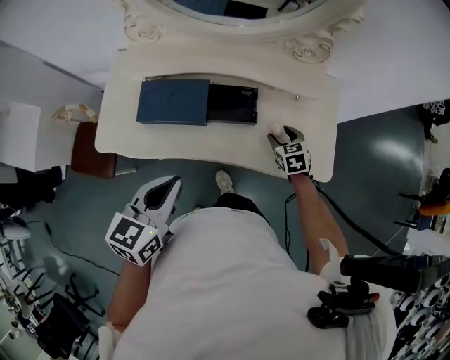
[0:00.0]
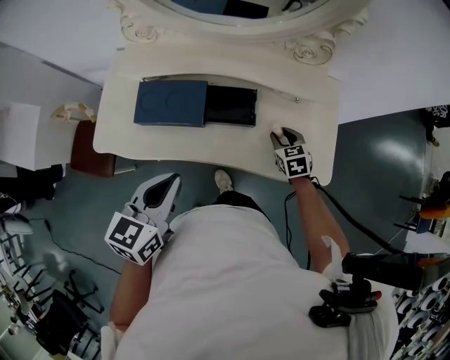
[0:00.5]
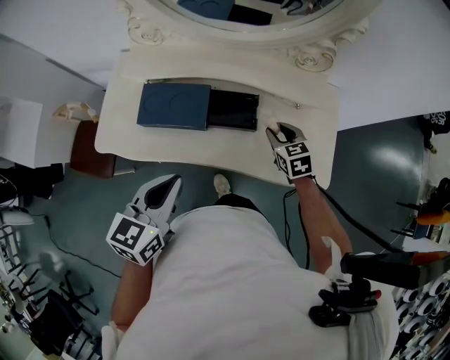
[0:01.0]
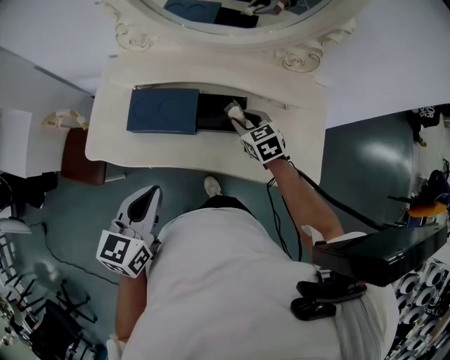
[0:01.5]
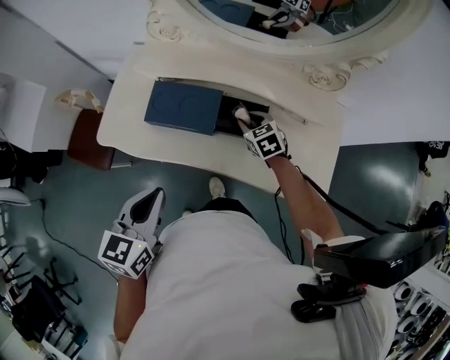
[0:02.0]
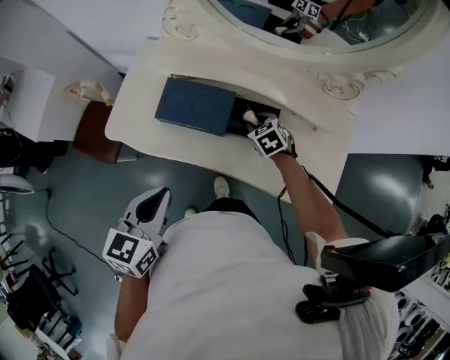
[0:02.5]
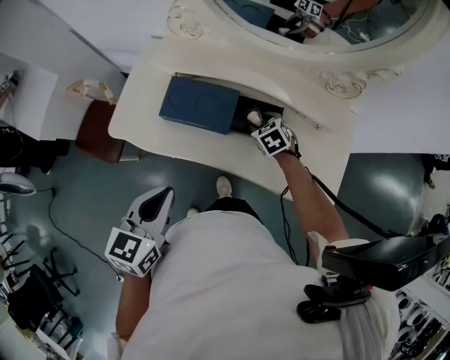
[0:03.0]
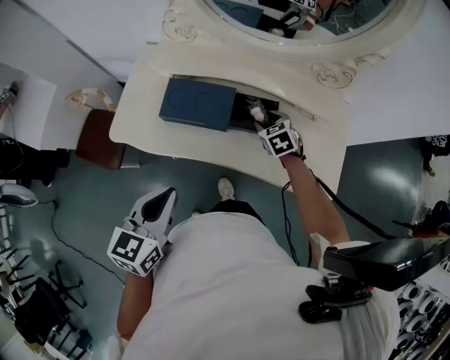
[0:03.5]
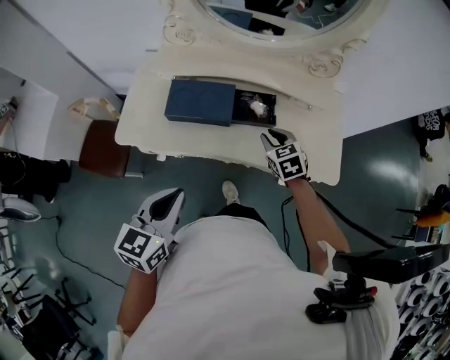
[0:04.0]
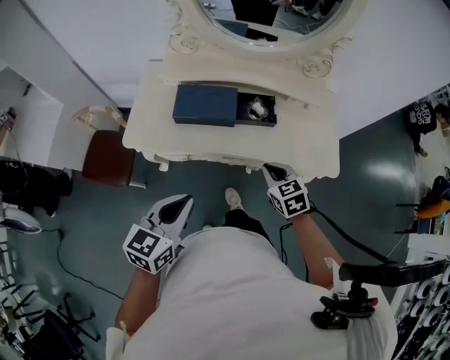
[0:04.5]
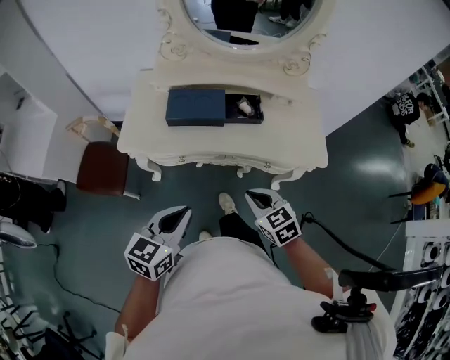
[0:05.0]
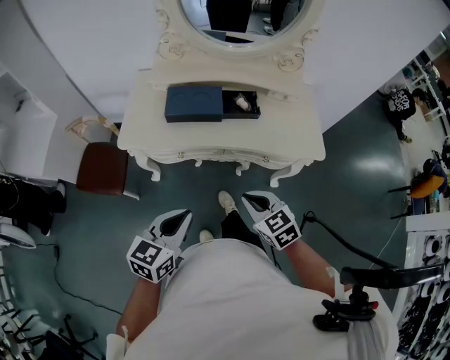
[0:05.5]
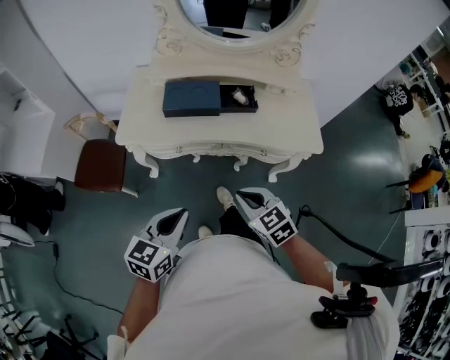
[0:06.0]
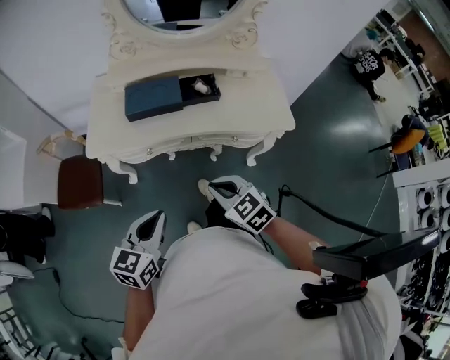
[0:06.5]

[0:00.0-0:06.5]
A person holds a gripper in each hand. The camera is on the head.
0:00.0 to 0:02.0: The right gripper goes roughly 20 cm to the left and forward, swivels about 20 degrees, and closes. Meanwhile the left gripper shifts approximately 5 cm to the left.
0:02.0 to 0:04.5: The right gripper is displaced backward by roughly 25 cm, and closes up. Meanwhile the left gripper shifts roughly 15 cm backward and to the left.
0:04.5 to 0:06.5: The left gripper shifts about 10 cm backward, while the right gripper travels backward and to the left by about 20 cm.

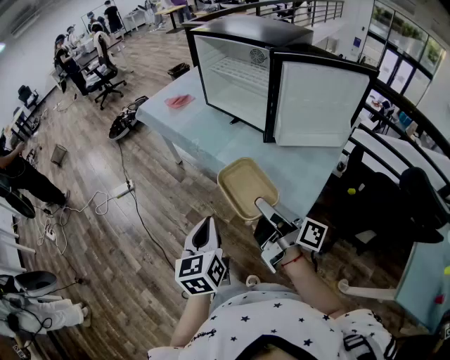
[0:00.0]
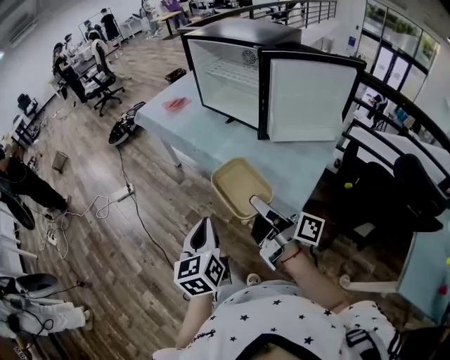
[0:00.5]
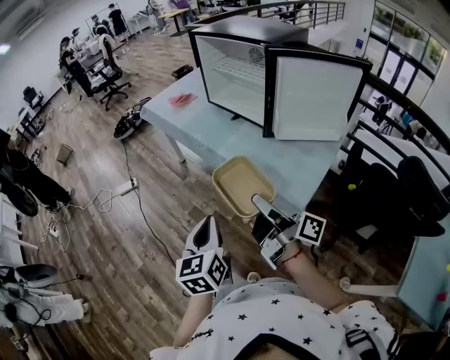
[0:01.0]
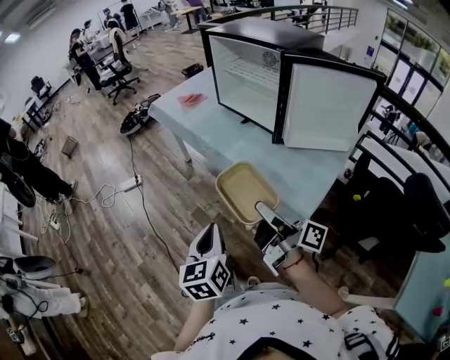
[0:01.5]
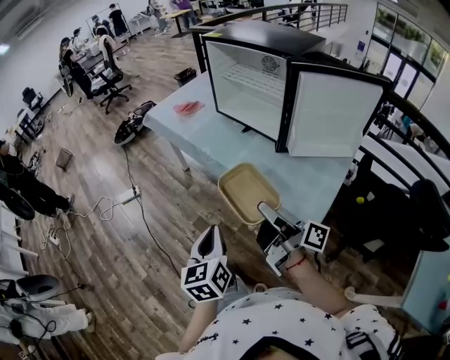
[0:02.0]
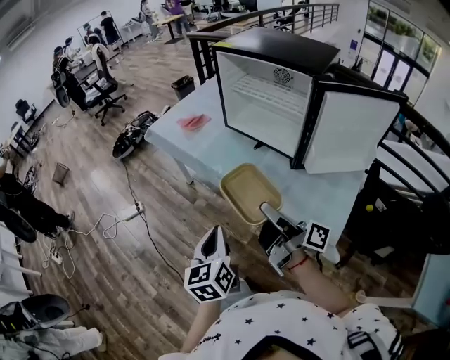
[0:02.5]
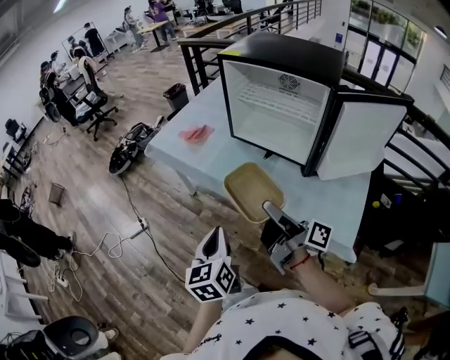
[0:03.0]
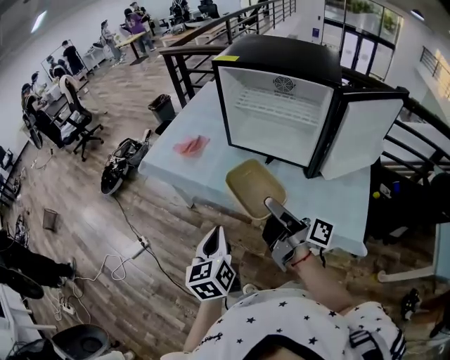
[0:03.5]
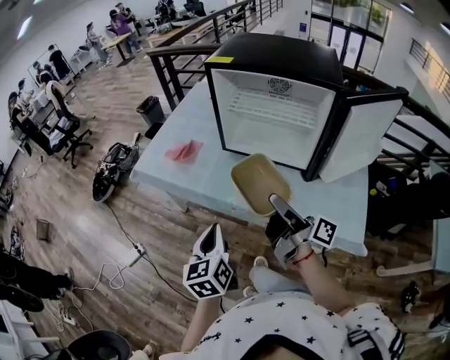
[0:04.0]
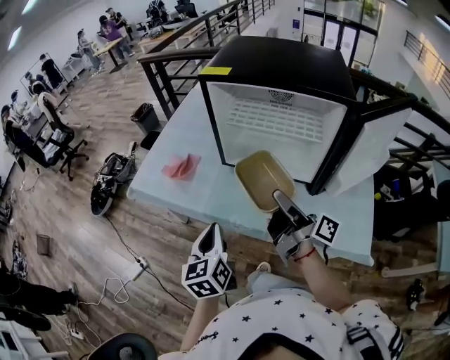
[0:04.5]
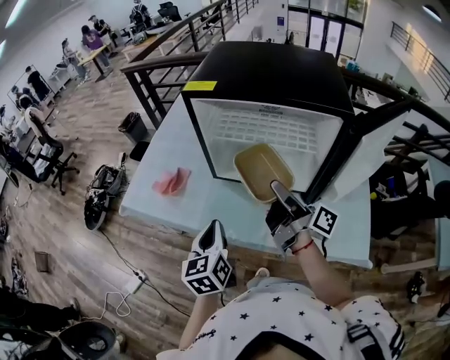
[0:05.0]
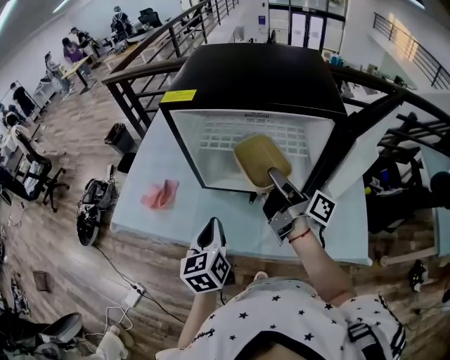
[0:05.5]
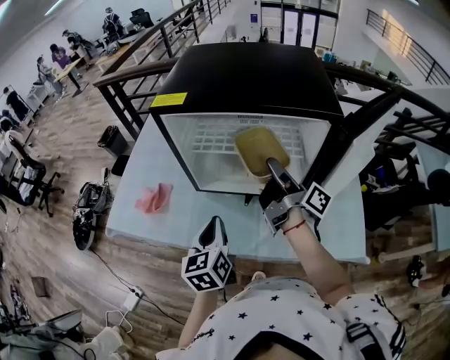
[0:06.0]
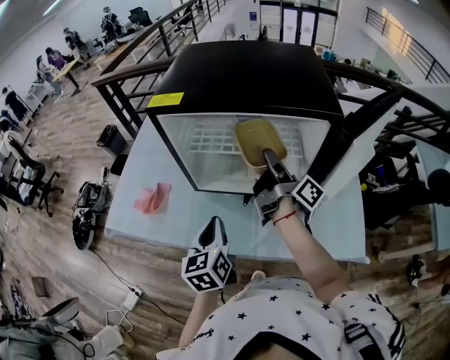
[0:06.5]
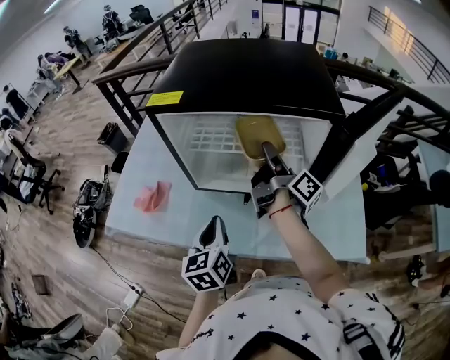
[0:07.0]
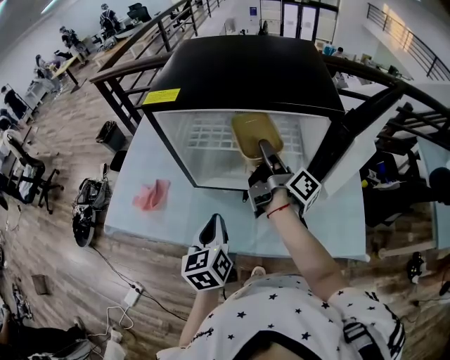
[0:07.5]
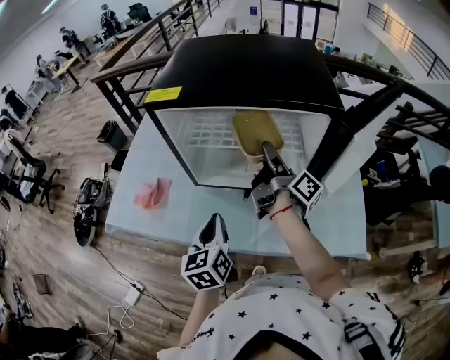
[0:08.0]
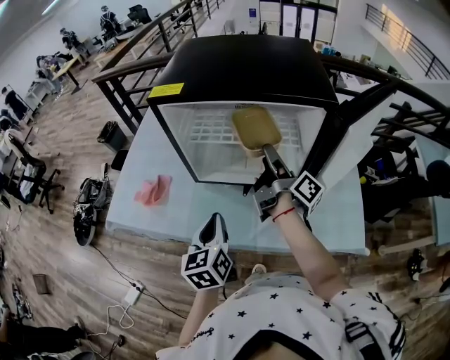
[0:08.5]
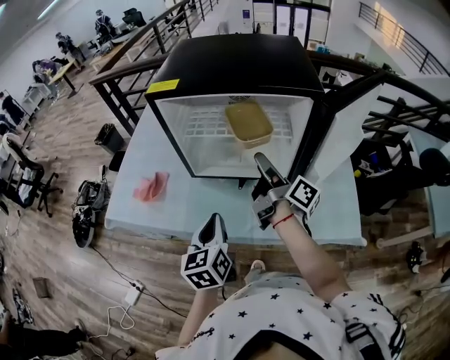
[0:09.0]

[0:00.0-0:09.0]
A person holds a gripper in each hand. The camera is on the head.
0:00.0 to 0:02.0: There are only small adjustments of the grippers.
0:02.0 to 0:04.5: Both grippers move forward, approximately 35 cm. The left gripper changes its angle by about 20 degrees. Meanwhile the right gripper rotates some 30 degrees.
0:04.5 to 0:07.0: The grippers both shift forward and to the right by roughly 20 cm. The right gripper rotates roughly 30 degrees.
0:07.0 to 0:09.0: The right gripper is displaced backward by roughly 10 cm. The left gripper heads backward, covering roughly 5 cm.

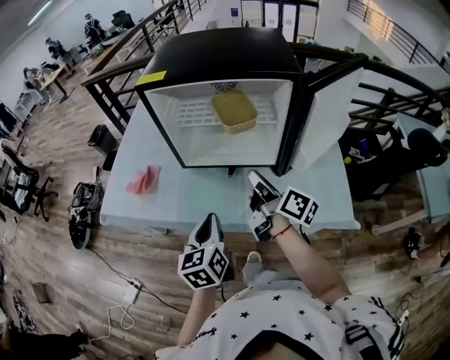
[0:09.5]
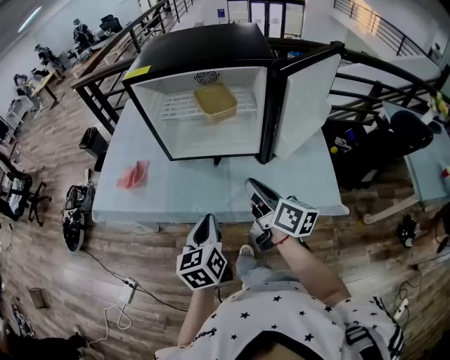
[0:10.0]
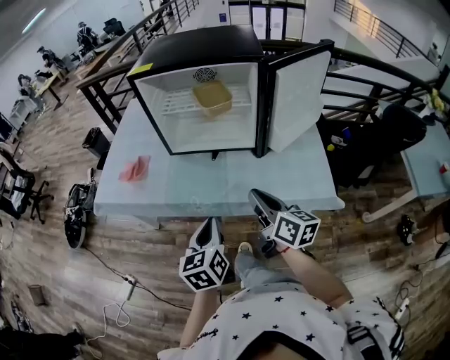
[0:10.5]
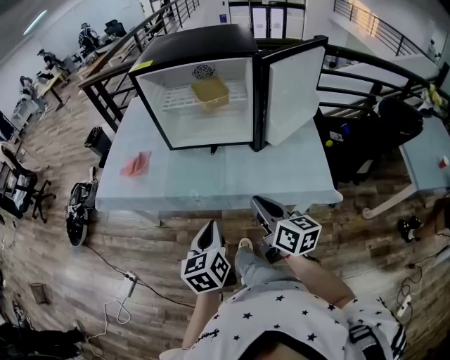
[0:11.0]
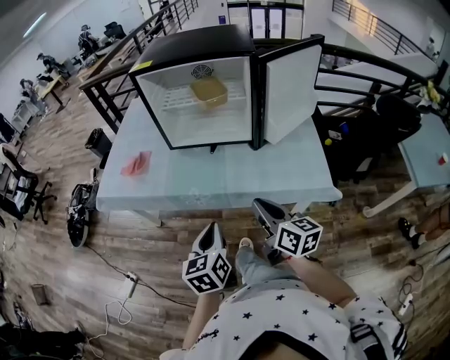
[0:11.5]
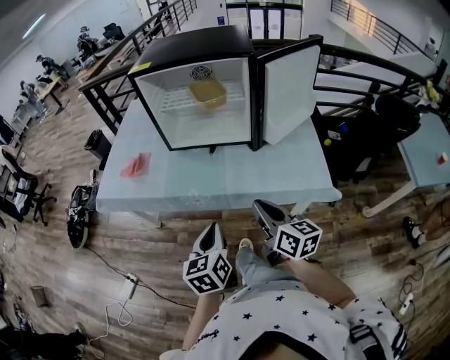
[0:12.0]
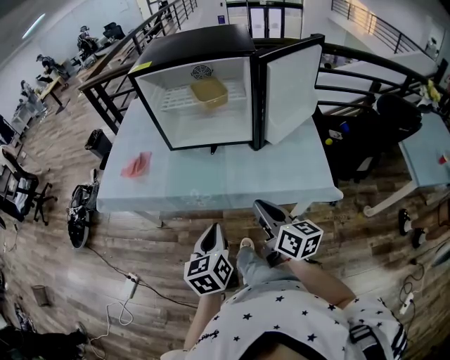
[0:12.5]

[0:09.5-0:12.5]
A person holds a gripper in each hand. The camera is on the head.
0:09.5 to 0:11.0: The two grippers go approximately 20 cm backward. The right gripper rotates approximately 30 degrees.
0:11.0 to 0:12.5: The grippers make only small movements.

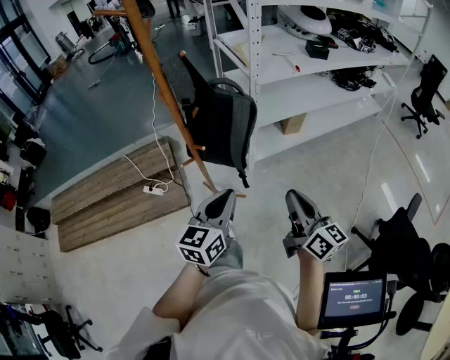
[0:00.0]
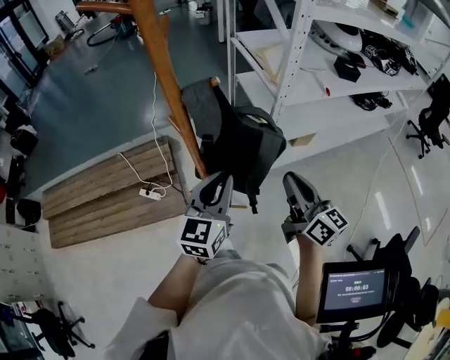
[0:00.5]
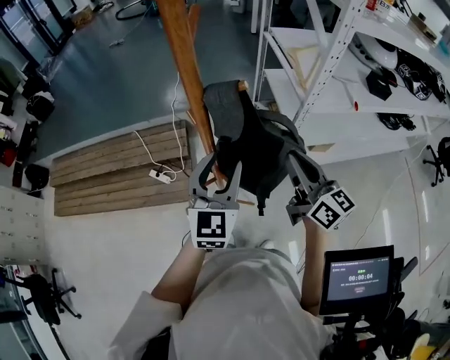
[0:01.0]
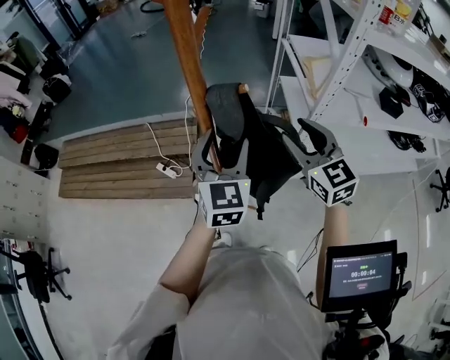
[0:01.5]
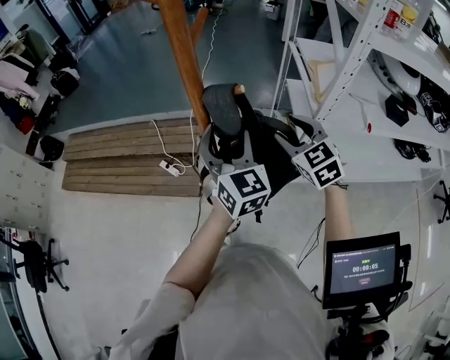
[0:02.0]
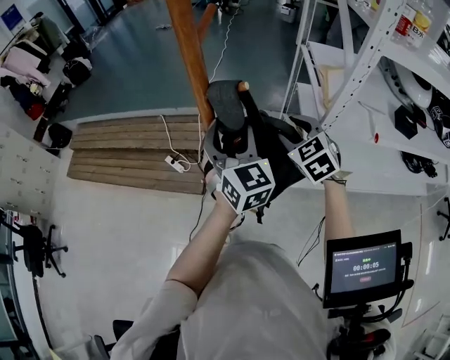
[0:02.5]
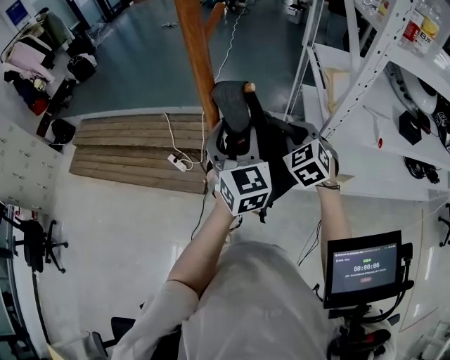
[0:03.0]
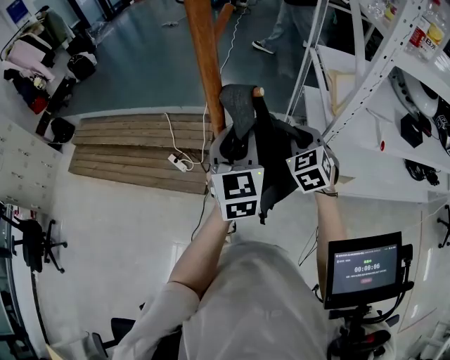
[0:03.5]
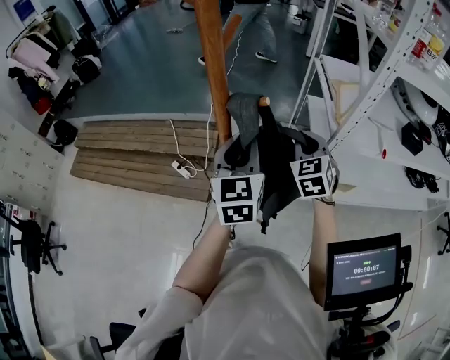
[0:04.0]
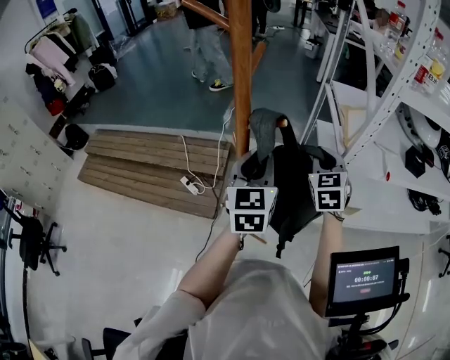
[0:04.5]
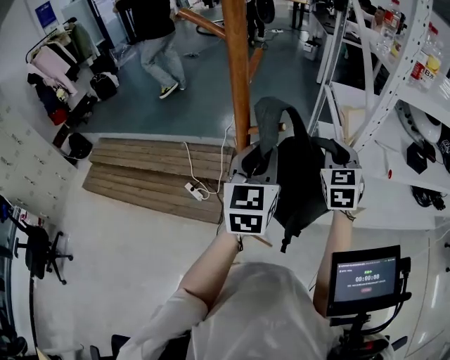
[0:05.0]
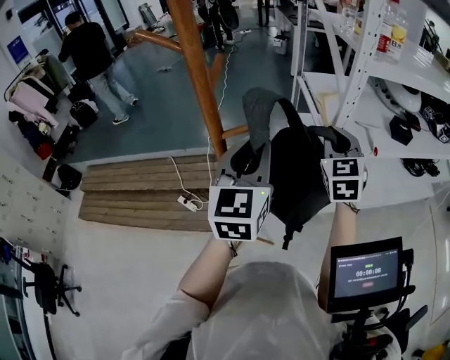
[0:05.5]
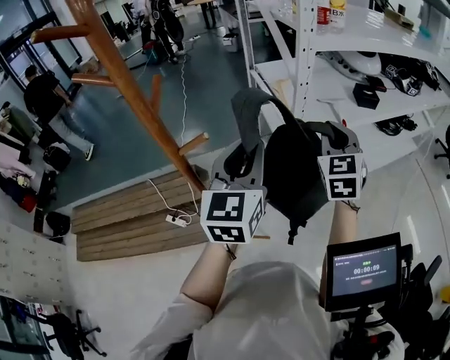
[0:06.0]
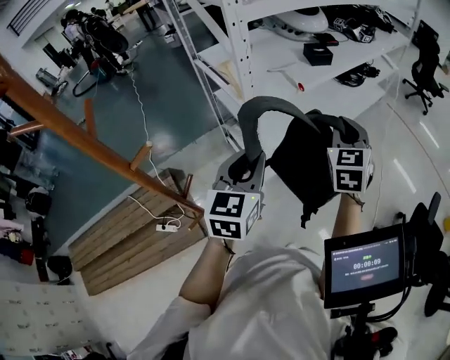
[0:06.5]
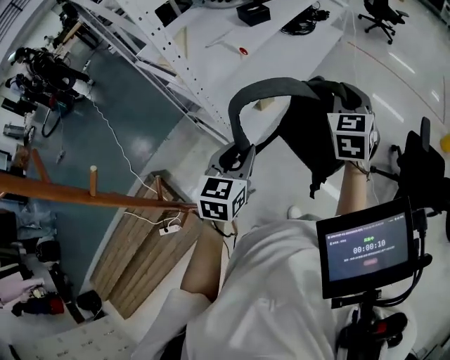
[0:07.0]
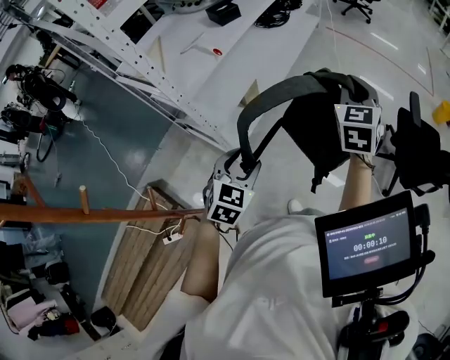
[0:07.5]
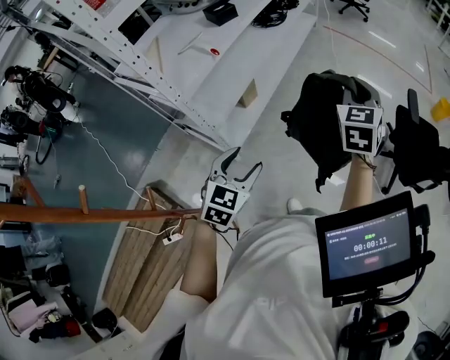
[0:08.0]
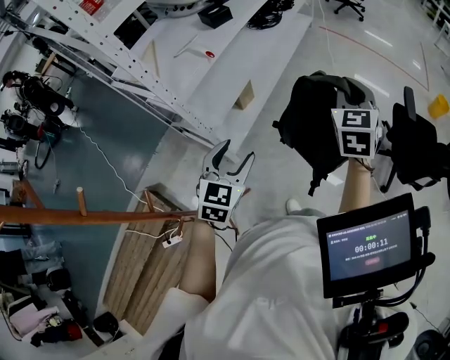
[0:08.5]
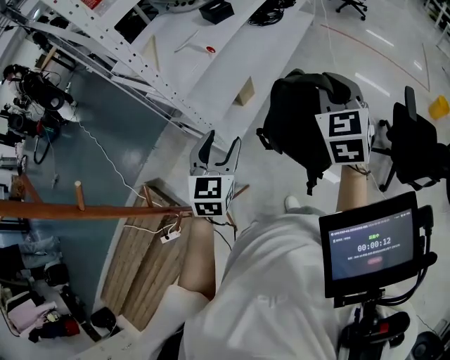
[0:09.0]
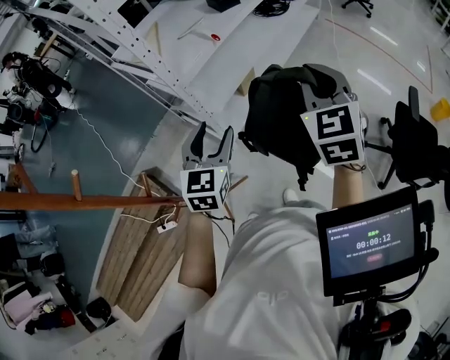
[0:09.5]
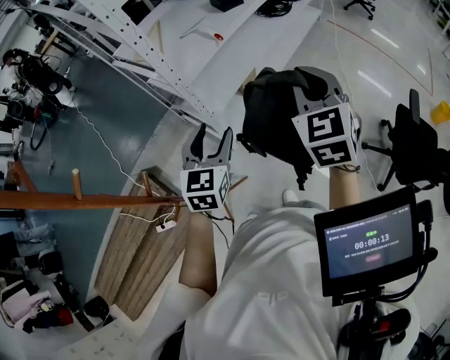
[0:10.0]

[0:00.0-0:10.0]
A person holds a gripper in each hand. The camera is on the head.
0:00.0 to 0:02.0: The left gripper changes place by roughly 35 cm, rotates roughly 60 degrees, and opens; the right gripper ends up some 40 cm from where it was, rolls counterclockwise, seen from behind, by about 50 degrees, and opens its fingers.
0:02.0 to 0:04.0: The right gripper closes its fingers, while the left gripper changes its angle by some 20 degrees, and closes.
0:04.0 to 0:06.0: The left gripper ends up some 15 cm from where it was, and swivels roughly 30 degrees. The right gripper moves approximately 25 cm, and turns by approximately 30 degrees.
0:06.0 to 0:08.0: The left gripper goes approximately 25 cm downward, tips its fingers downward by about 30 degrees, and opens up. The right gripper shifts by roughly 40 cm, and changes its angle by approximately 50 degrees.
0:08.0 to 0:10.0: The left gripper moves approximately 10 cm, and changes its angle by about 30 degrees, while the right gripper ends up some 15 cm from where it was, and rotates approximately 30 degrees.
